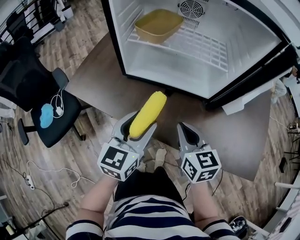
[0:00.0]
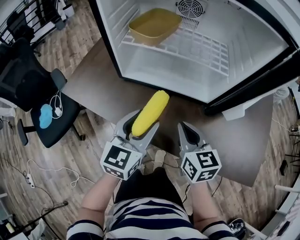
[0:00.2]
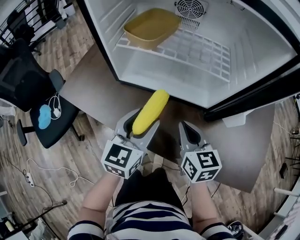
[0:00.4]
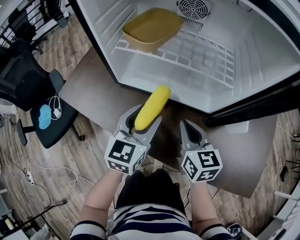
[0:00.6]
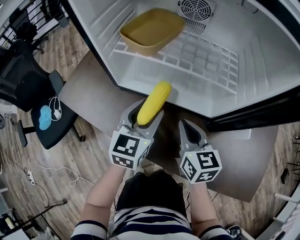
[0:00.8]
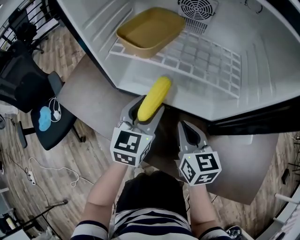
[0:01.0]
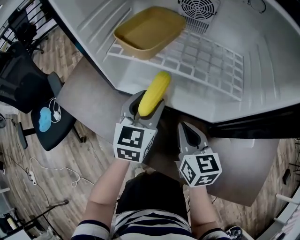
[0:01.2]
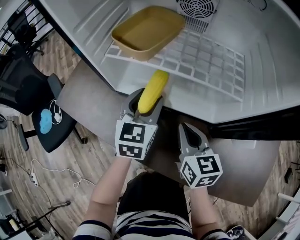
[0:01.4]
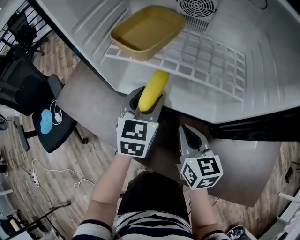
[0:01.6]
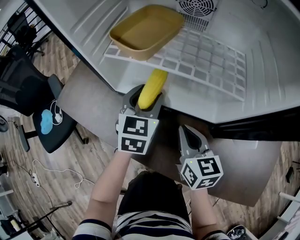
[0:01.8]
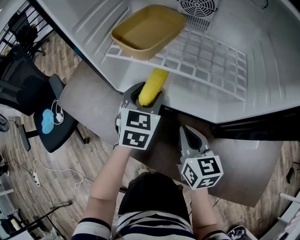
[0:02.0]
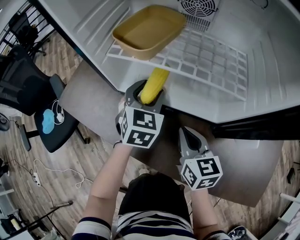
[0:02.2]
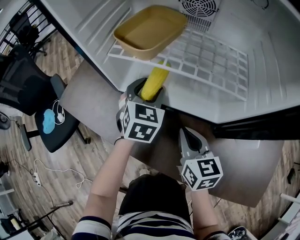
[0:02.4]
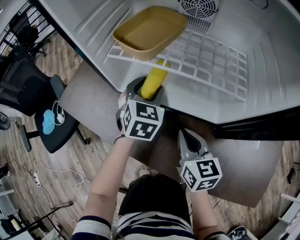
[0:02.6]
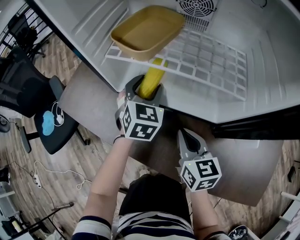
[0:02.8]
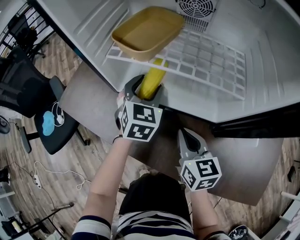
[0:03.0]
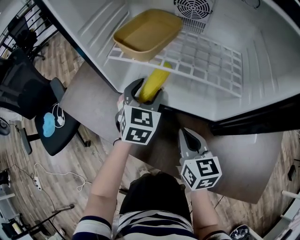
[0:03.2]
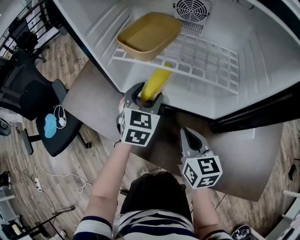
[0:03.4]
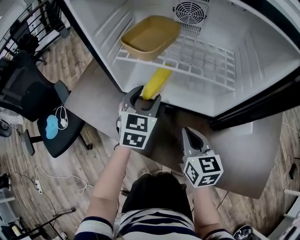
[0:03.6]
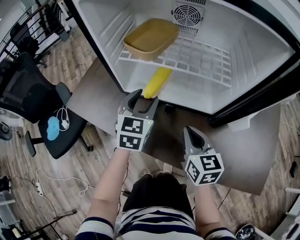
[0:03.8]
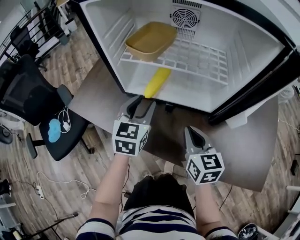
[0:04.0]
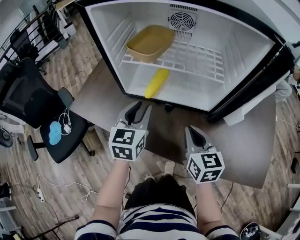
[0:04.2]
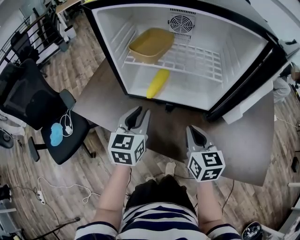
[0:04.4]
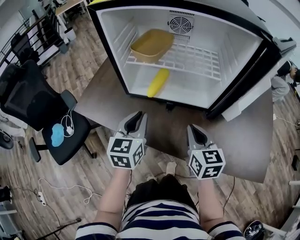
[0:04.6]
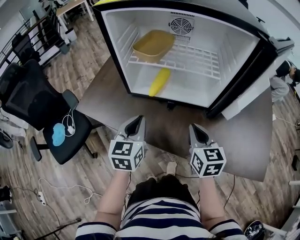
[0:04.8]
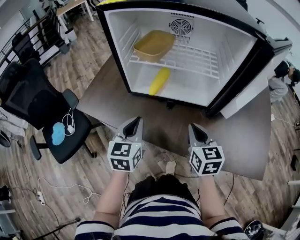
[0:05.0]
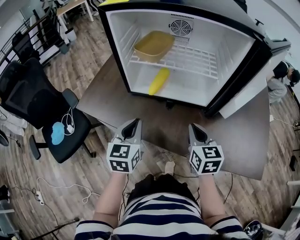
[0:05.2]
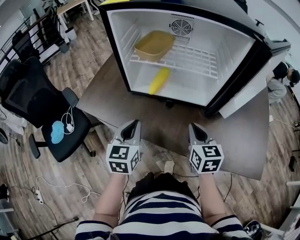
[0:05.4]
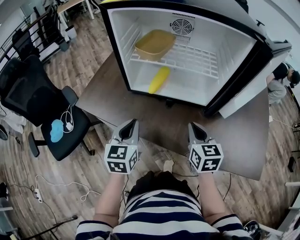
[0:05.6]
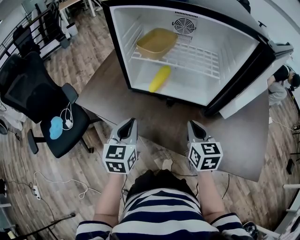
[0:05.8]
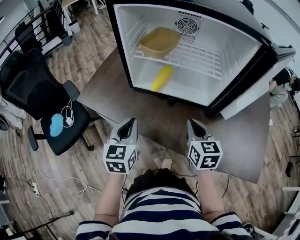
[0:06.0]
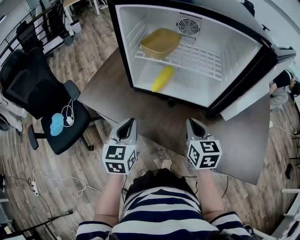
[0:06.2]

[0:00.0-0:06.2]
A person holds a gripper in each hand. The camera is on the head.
0:00.0 to 0:01.6: The left gripper heads forward, covering approximately 20 cm. Meanwhile the right gripper is displaced forward and downward by approximately 15 cm.
0:01.6 to 0:03.2: The grippers move only a little.
0:03.2 to 0:04.6: The left gripper moves backward and upward, roughly 15 cm, and changes its angle by about 20 degrees, while the right gripper goes some 10 cm backward and upward.
0:04.6 to 0:06.2: The left gripper is displaced backward by about 5 cm.

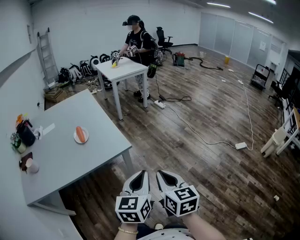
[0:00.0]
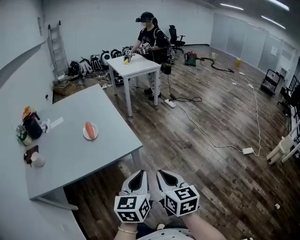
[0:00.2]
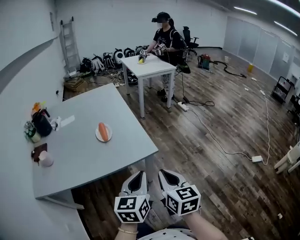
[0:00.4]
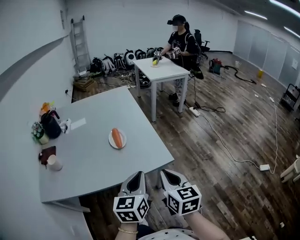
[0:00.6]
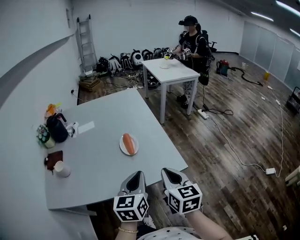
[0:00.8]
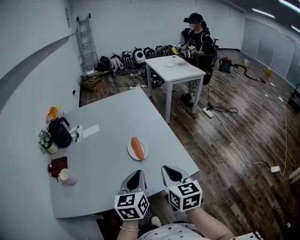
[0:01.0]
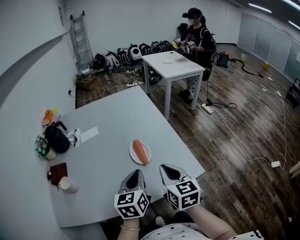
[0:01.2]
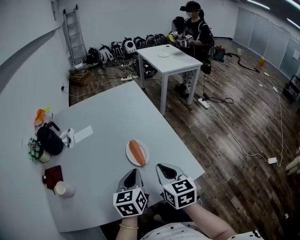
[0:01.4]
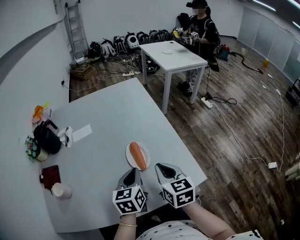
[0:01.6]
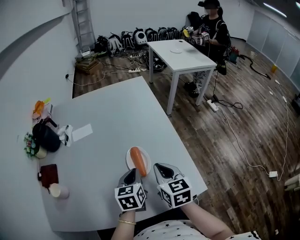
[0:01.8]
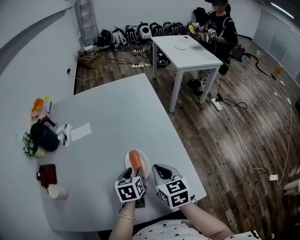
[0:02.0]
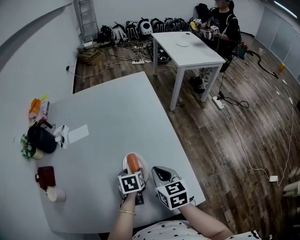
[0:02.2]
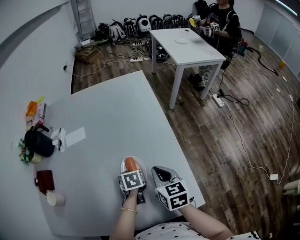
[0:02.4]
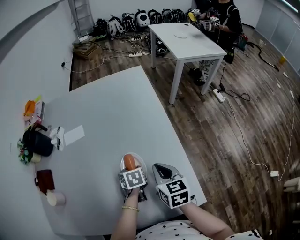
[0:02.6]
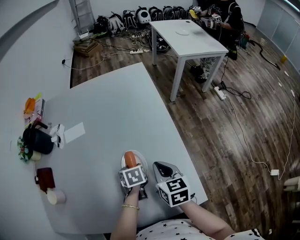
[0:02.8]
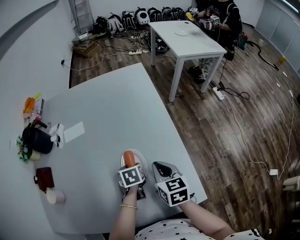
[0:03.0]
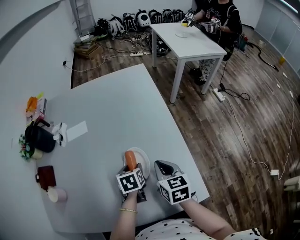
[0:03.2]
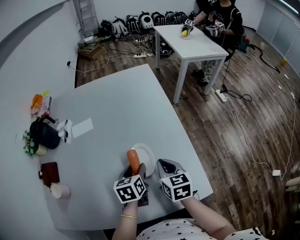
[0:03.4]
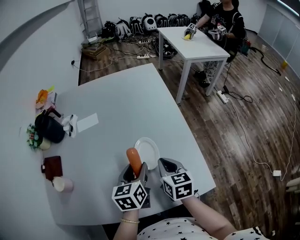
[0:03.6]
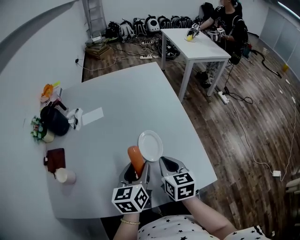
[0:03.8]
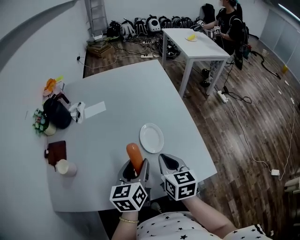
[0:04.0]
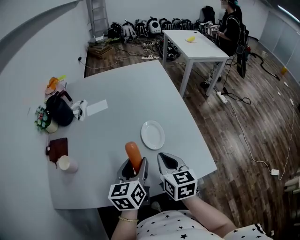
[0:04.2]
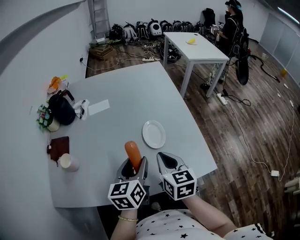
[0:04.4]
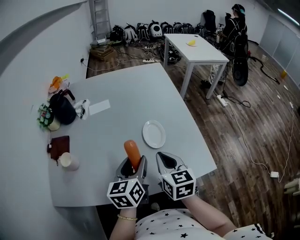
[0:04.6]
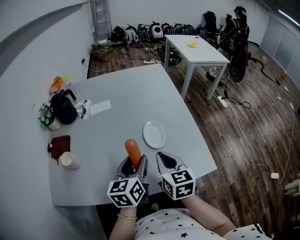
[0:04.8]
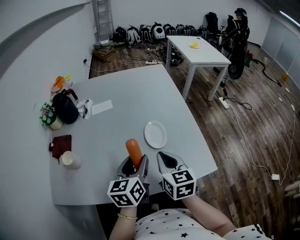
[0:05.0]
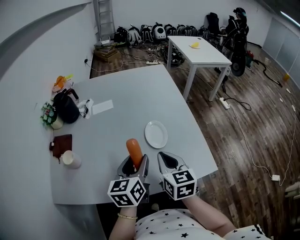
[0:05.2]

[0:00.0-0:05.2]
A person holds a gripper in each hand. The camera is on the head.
0:00.0 to 0:01.8: The two grippers travel together, forward and to the left, approximately 60 cm. The left gripper rotates roughly 30 degrees, while the right gripper swivels approximately 20 degrees.
0:01.8 to 0:03.4: The right gripper moves downward and forward, some 10 cm; the left gripper is displaced forward by approximately 5 cm, and opens.
0:03.4 to 0:05.2: The left gripper is displaced backward, upward and to the left by approximately 20 cm, and swivels some 20 degrees; the right gripper shifts approximately 15 cm backward, to the left and upward.

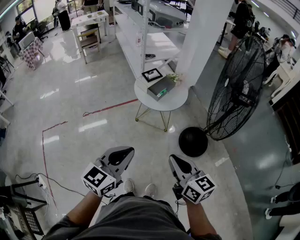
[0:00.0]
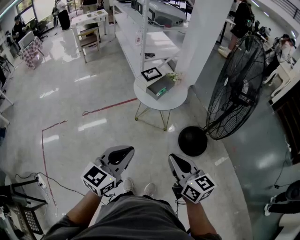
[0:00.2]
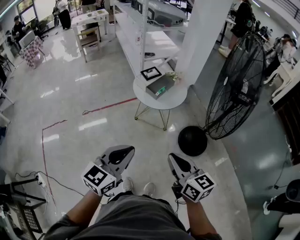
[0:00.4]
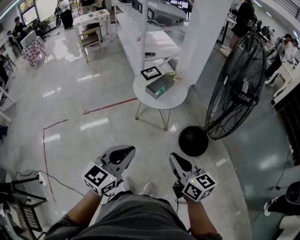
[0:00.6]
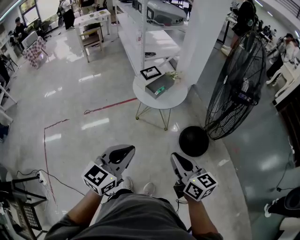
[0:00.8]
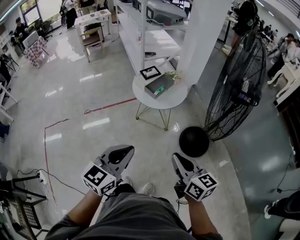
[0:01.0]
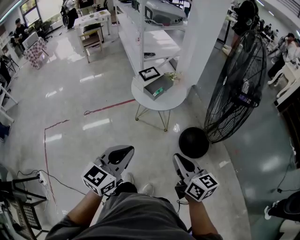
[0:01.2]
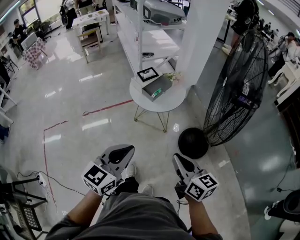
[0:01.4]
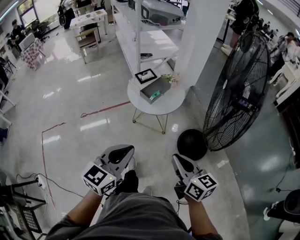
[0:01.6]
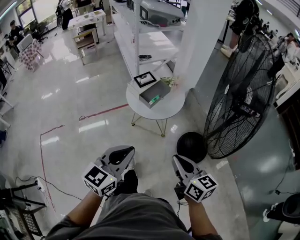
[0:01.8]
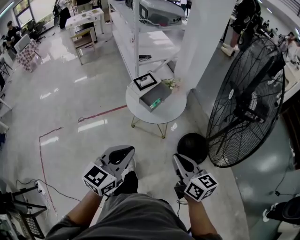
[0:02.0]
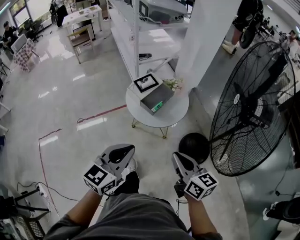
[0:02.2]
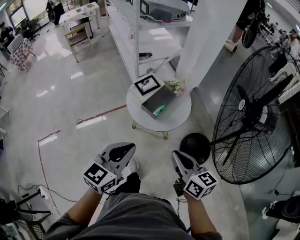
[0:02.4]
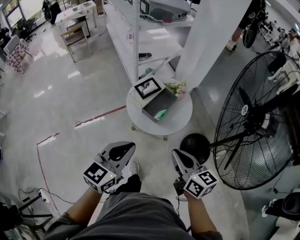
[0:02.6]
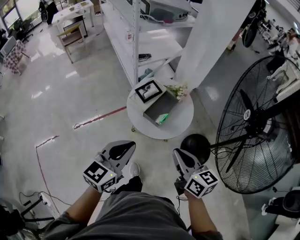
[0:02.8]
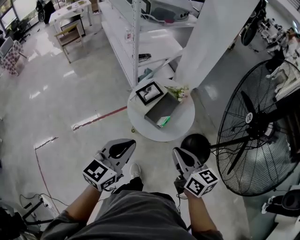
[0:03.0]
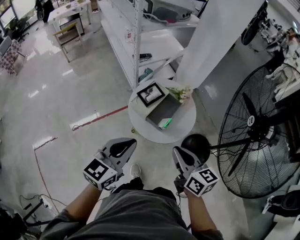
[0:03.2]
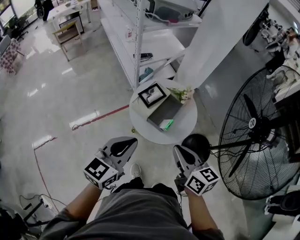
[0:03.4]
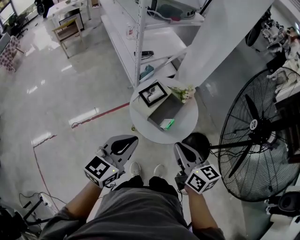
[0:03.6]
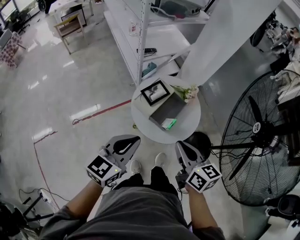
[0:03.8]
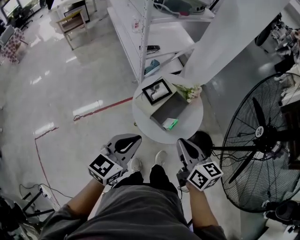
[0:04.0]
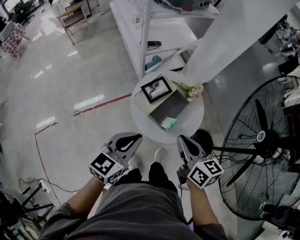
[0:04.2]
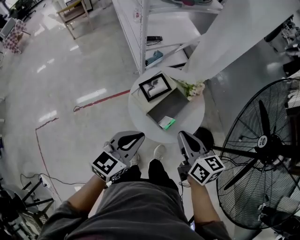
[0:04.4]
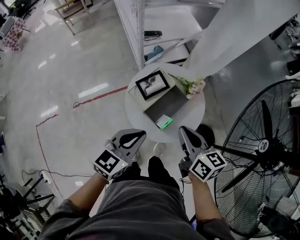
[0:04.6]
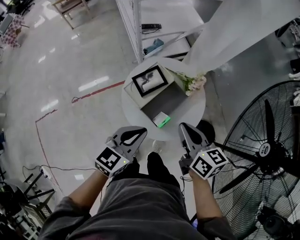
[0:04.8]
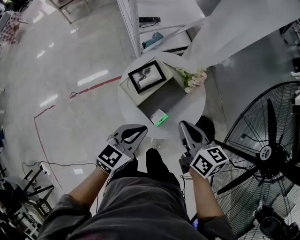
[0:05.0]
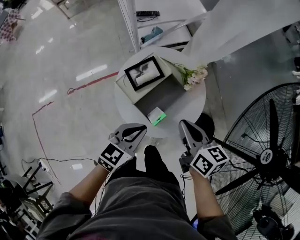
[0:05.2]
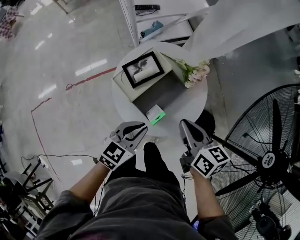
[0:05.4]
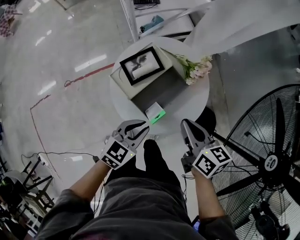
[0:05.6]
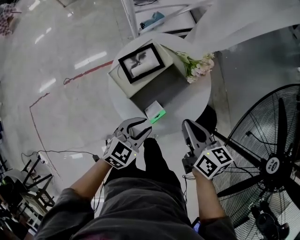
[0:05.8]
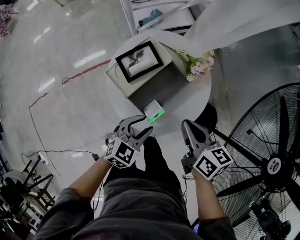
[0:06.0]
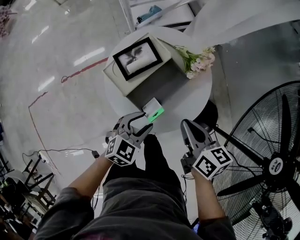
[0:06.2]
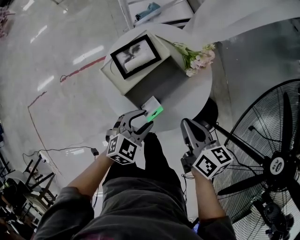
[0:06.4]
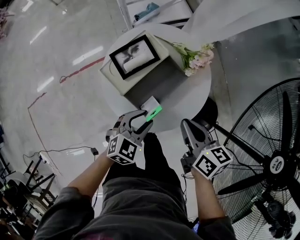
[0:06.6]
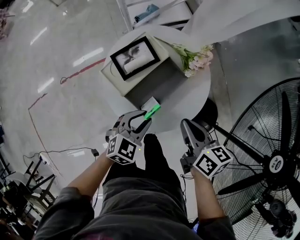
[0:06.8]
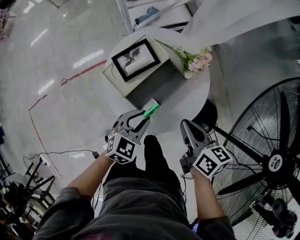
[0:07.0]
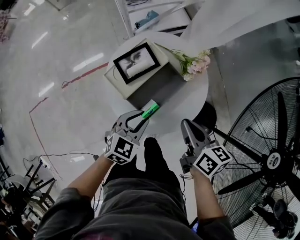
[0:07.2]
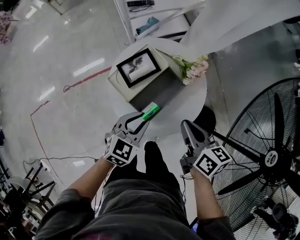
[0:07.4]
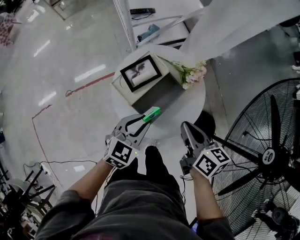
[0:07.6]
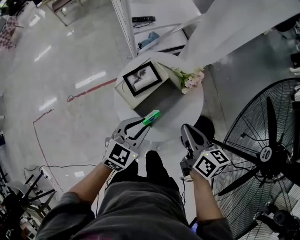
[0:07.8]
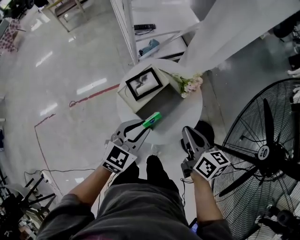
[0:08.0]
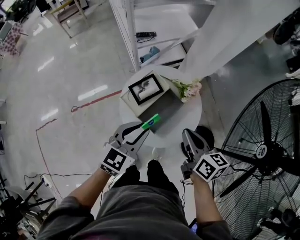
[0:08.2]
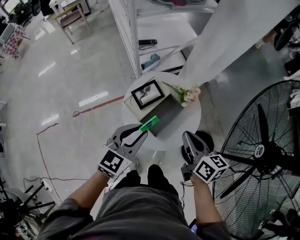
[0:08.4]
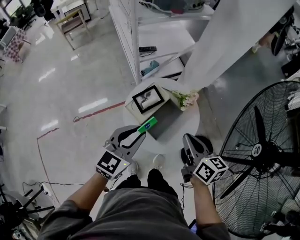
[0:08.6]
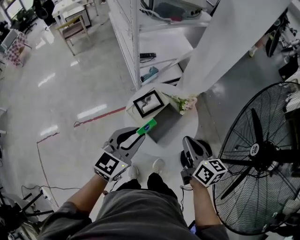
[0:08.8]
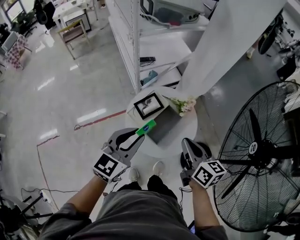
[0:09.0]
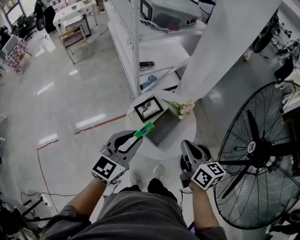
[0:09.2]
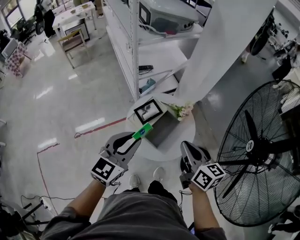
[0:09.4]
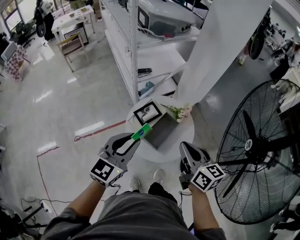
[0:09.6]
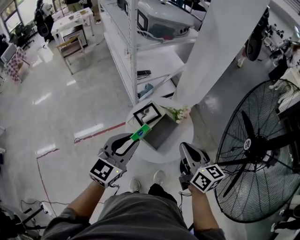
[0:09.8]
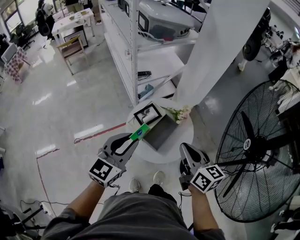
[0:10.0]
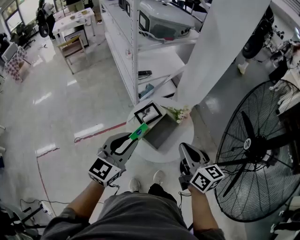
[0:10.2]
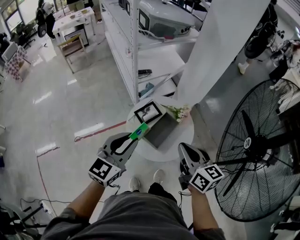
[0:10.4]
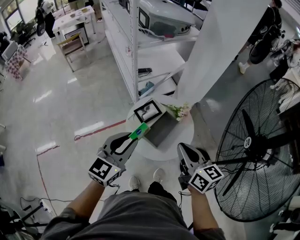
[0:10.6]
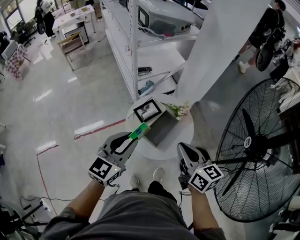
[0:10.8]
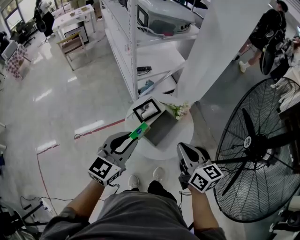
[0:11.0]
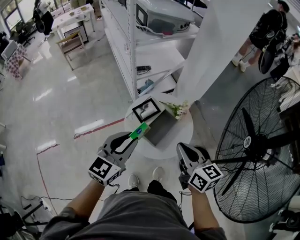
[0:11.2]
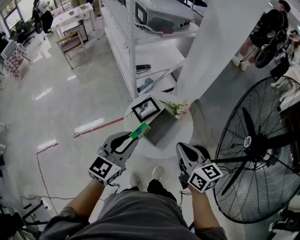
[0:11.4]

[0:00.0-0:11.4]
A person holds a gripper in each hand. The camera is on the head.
0:00.0 to 0:01.4: The right gripper goes approximately 10 cm to the right and forward, while the left gripper is displaced to the right by some 10 cm.
0:01.4 to 0:02.8: The left gripper shifts roughly 30 cm forward; the right gripper heads forward and to the left, covering about 30 cm.
0:02.8 to 0:04.2: The left gripper heads forward and downward, covering some 15 cm; the right gripper goes approximately 15 cm forward.
0:04.2 to 0:05.6: The right gripper travels downward, forward and to the right by approximately 20 cm. The left gripper goes some 25 cm downward and to the right.
0:05.6 to 0:07.2: The left gripper opens, then closes once more.
0:07.2 to 0:08.6: The right gripper moves upward, approximately 15 cm; the left gripper is displaced upward by about 25 cm, and changes its angle by approximately 20 degrees.
0:08.6 to 0:10.0: The right gripper moves upward and backward, about 10 cm. The left gripper heads upward, covering approximately 10 cm.
0:10.0 to 0:11.4: There are only small adjustments of the grippers.

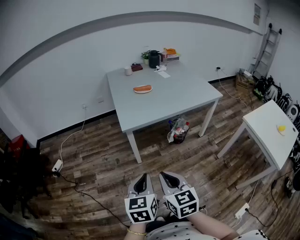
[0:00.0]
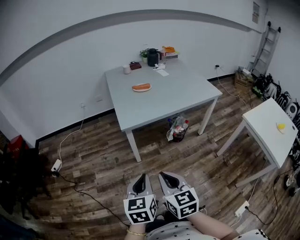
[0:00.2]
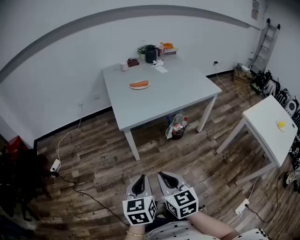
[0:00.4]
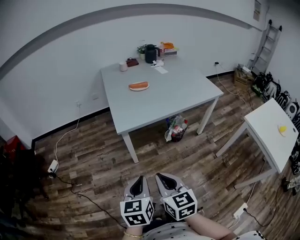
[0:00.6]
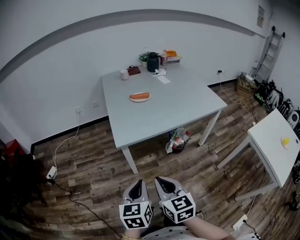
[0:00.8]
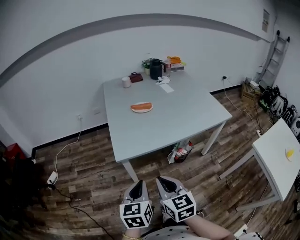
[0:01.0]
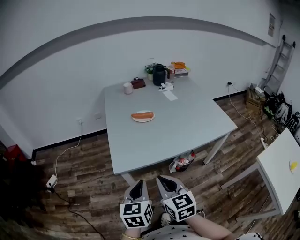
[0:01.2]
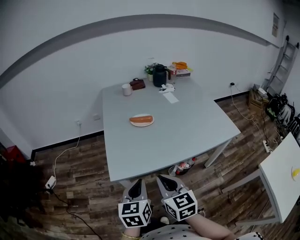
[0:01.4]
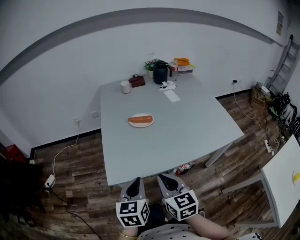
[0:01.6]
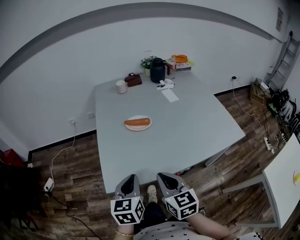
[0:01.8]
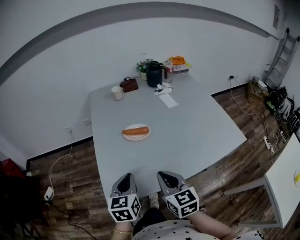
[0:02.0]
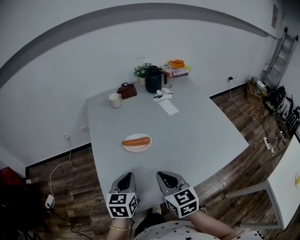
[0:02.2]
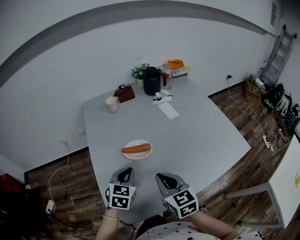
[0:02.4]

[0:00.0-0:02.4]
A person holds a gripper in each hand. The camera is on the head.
0:00.0 to 0:01.2: Both grippers move forward, about 30 cm.
0:01.2 to 0:02.4: Both grippers travel together forward, approximately 35 cm. The left gripper changes its angle by about 30 degrees.
